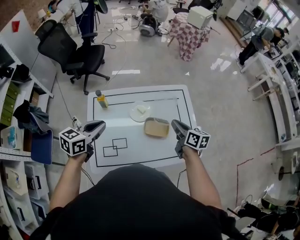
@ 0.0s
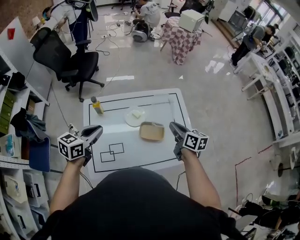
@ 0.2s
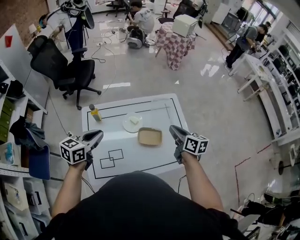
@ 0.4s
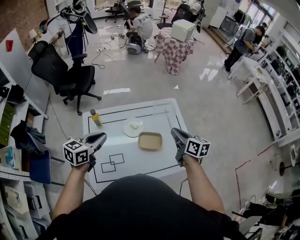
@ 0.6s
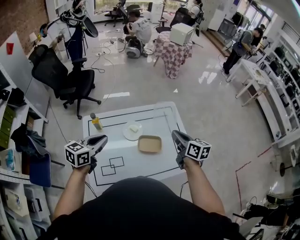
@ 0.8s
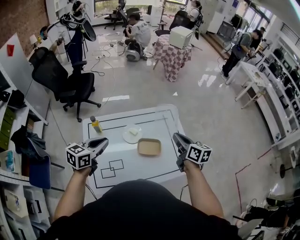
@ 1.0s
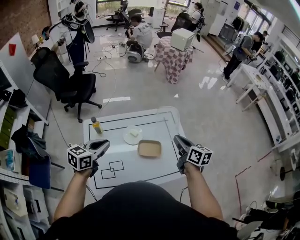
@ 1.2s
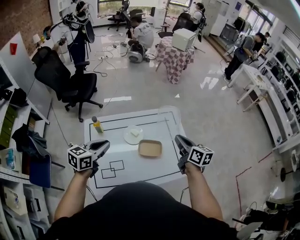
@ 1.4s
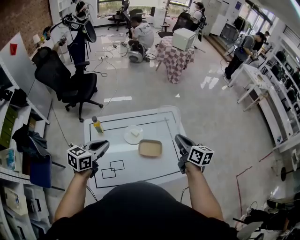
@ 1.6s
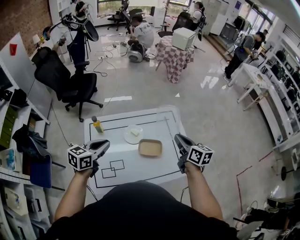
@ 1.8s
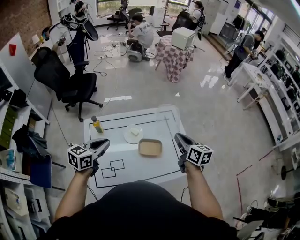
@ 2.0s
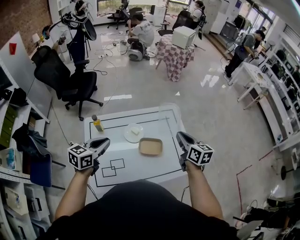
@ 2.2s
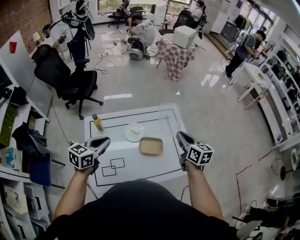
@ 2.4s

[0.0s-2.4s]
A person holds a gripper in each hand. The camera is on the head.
0.0s to 1.2s: The left gripper shifts by some 5 cm; the right gripper shifts approximately 10 cm upward.
1.2s to 2.4s: The grippers move only a little.

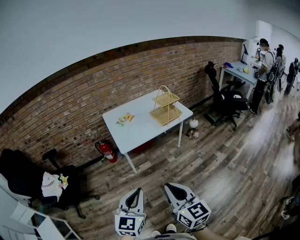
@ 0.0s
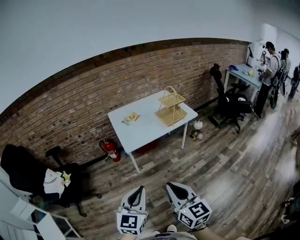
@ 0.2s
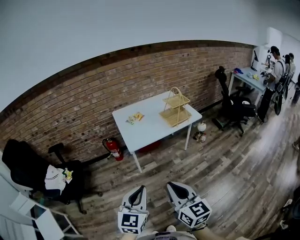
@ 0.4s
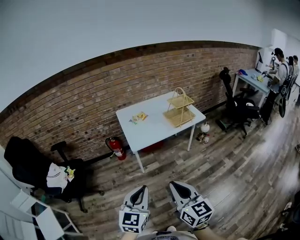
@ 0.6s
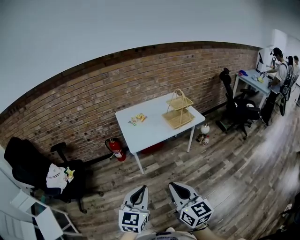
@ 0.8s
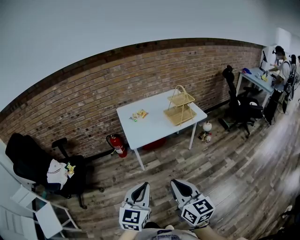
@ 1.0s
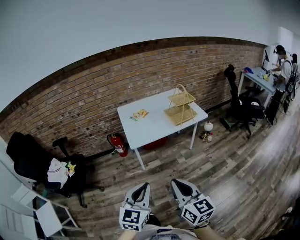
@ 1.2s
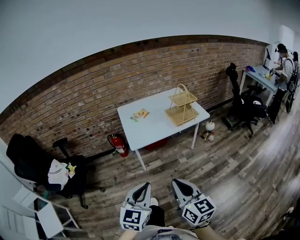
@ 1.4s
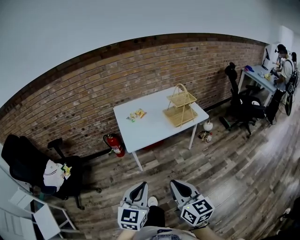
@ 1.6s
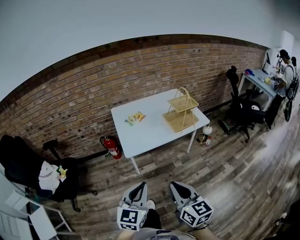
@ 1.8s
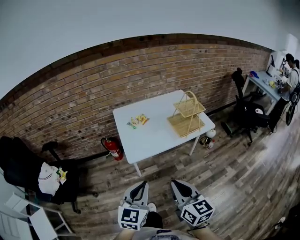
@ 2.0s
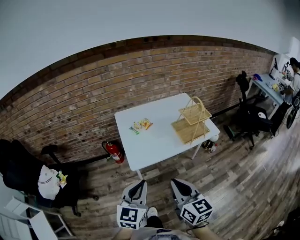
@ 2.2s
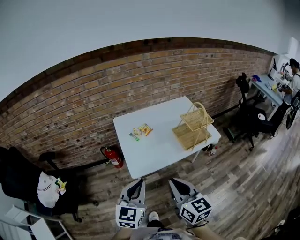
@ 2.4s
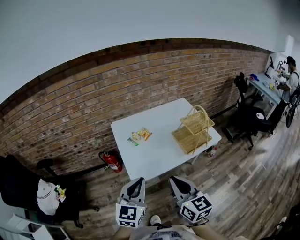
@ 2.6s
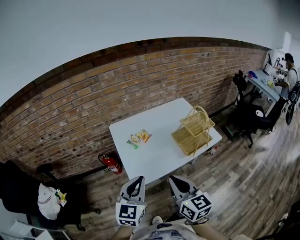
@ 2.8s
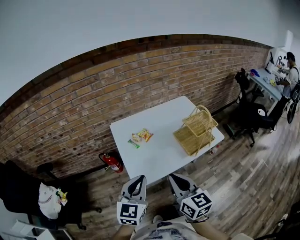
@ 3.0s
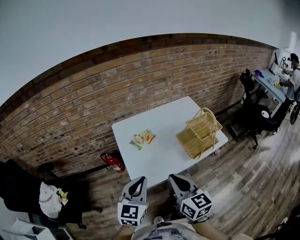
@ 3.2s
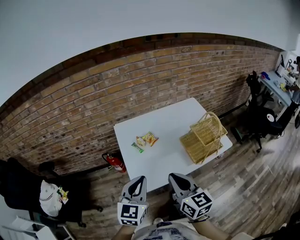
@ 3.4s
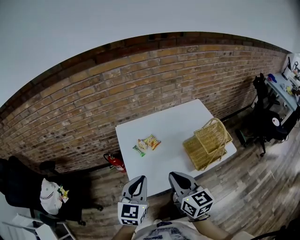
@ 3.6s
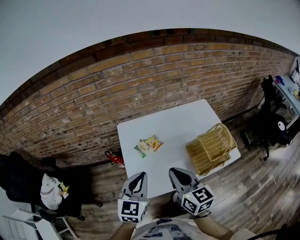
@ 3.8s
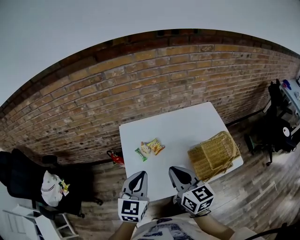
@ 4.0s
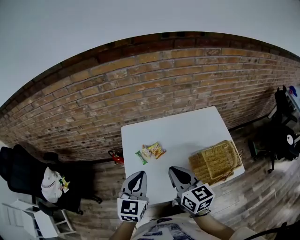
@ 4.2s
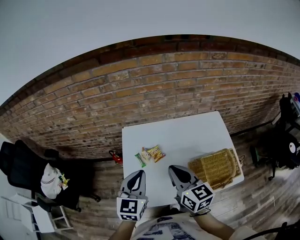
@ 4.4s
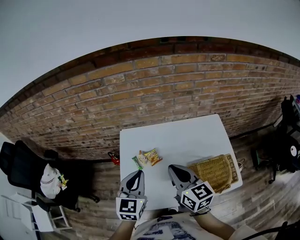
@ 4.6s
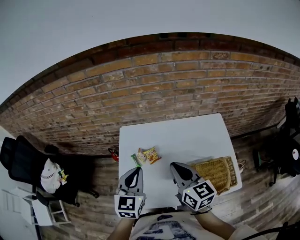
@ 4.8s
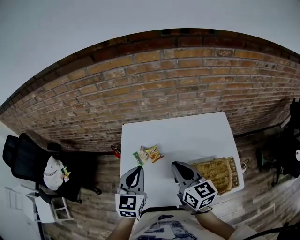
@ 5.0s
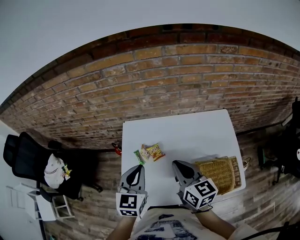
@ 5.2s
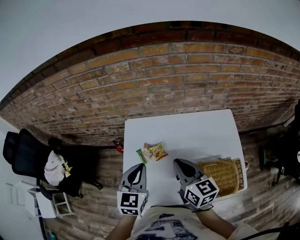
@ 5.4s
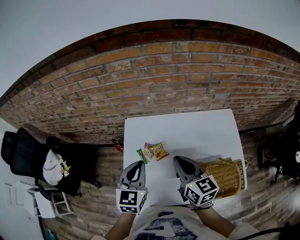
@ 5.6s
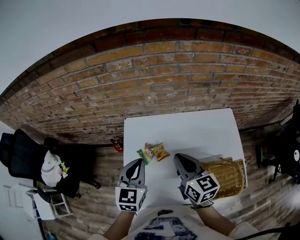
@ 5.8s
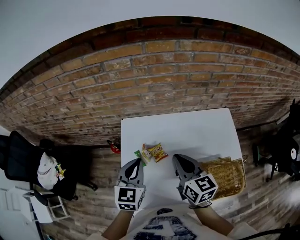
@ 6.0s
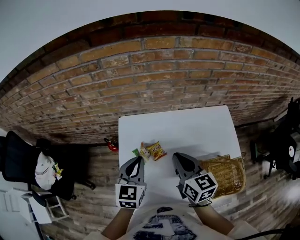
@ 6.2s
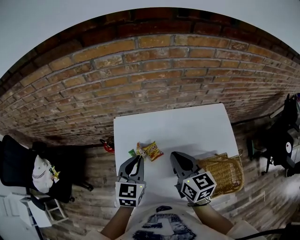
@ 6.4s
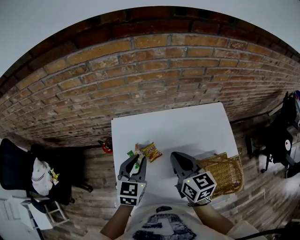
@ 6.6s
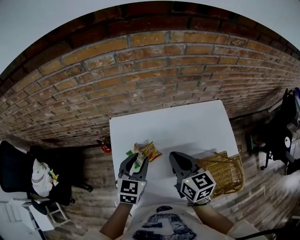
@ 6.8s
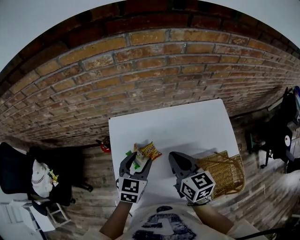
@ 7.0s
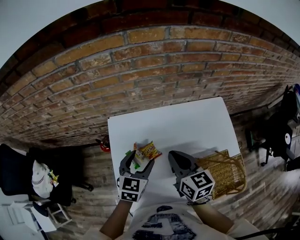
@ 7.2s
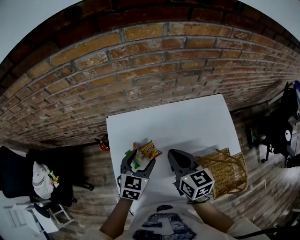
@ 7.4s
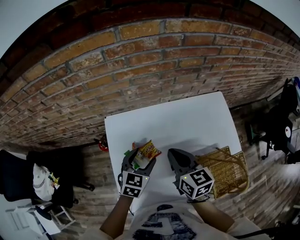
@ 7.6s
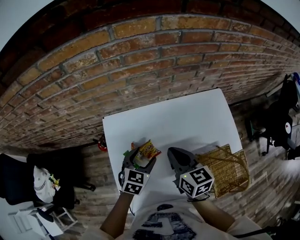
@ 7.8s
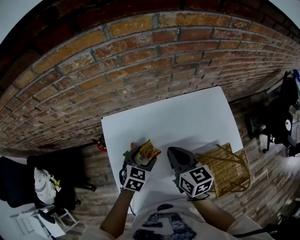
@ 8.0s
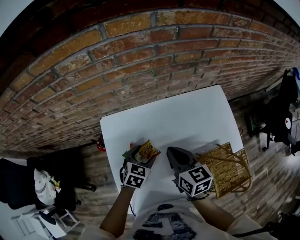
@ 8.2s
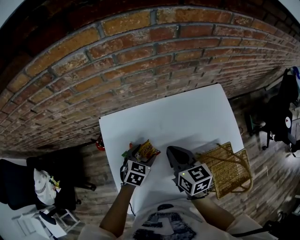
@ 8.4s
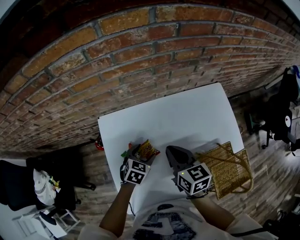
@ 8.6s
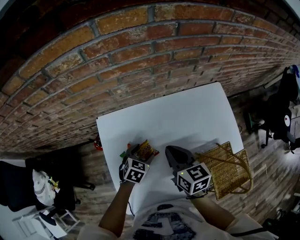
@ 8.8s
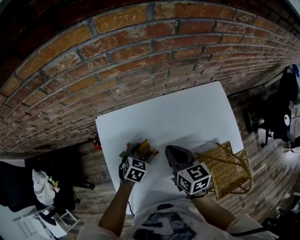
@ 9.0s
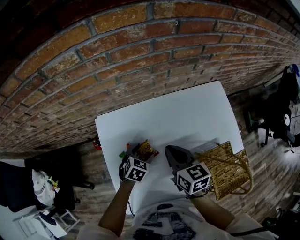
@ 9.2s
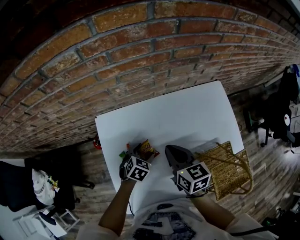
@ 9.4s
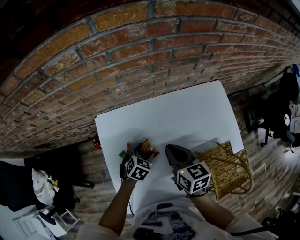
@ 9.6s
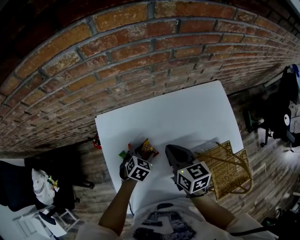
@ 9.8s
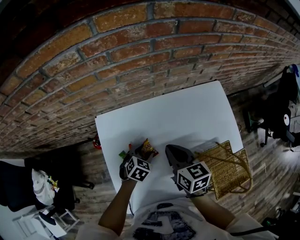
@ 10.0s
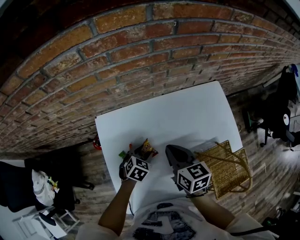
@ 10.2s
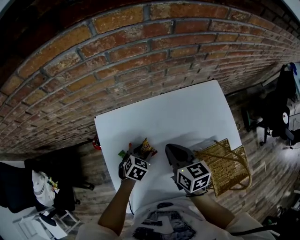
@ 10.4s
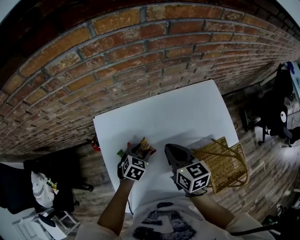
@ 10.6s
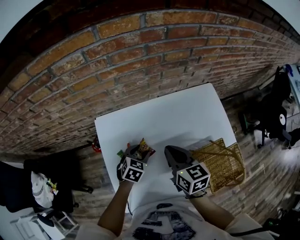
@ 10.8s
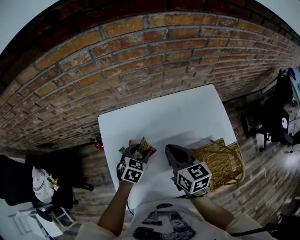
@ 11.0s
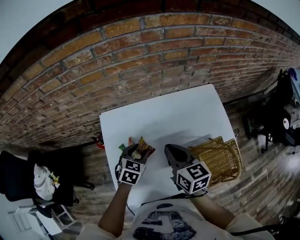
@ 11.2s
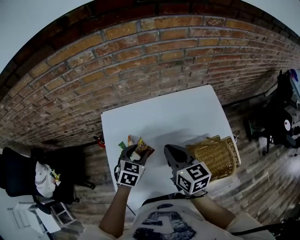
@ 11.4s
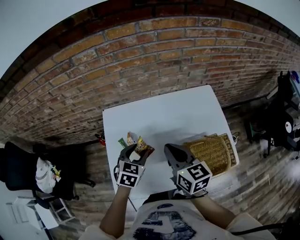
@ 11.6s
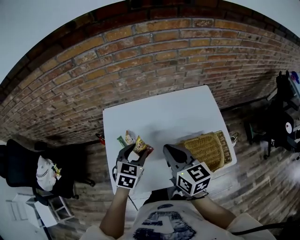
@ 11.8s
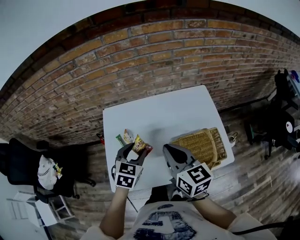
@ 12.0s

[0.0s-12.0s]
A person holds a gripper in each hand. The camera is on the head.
0.0s to 1.6s: The grippers both shift forward by some 10 cm.
1.6s to 3.0s: Both grippers move forward, approximately 35 cm.
3.0s to 4.4s: The grippers both shift forward by some 25 cm. The right gripper turns by about 20 degrees. The left gripper changes its angle by about 20 degrees.
4.4s to 6.0s: The two grippers go some 10 cm forward.
6.0s to 7.6s: The left gripper shifts about 15 cm downward, forward and to the right, rotates some 30 degrees, and opens up; the right gripper goes roughly 5 cm downward.
7.6s to 9.0s: The left gripper travels downward by some 10 cm. The right gripper goes about 5 cm downward.
9.0s to 10.4s: The grippers move only a little.
10.4s to 12.0s: The left gripper goes approximately 25 cm upward and backward, and rotates roughly 20 degrees. The right gripper goes roughly 20 cm backward, upward and to the right.

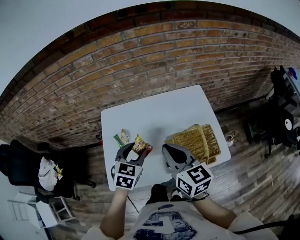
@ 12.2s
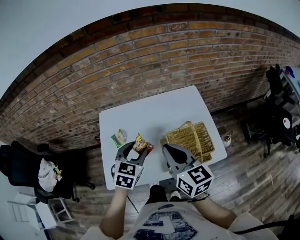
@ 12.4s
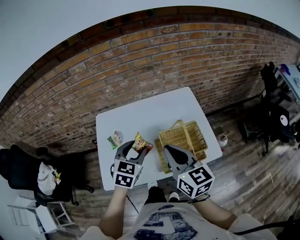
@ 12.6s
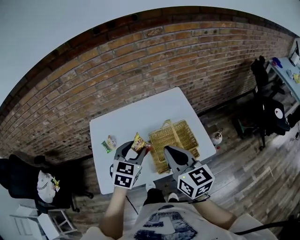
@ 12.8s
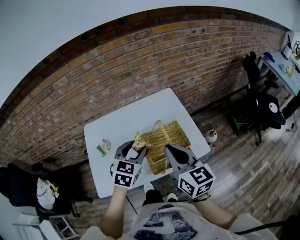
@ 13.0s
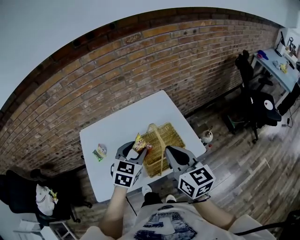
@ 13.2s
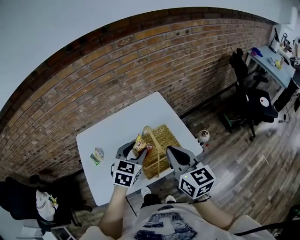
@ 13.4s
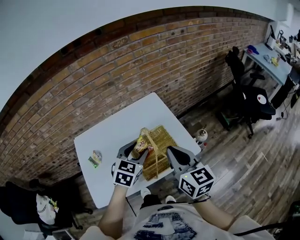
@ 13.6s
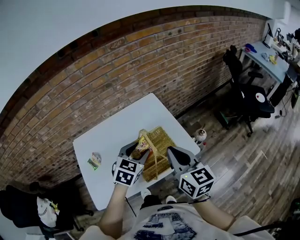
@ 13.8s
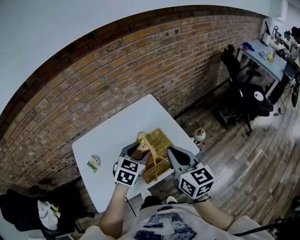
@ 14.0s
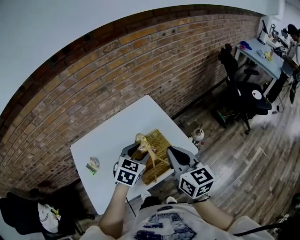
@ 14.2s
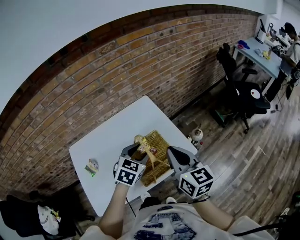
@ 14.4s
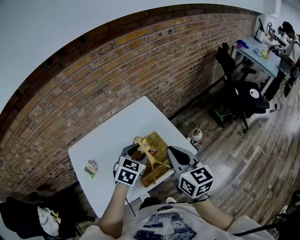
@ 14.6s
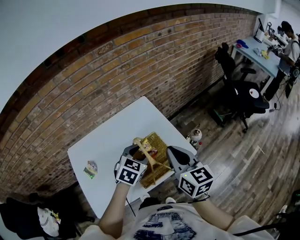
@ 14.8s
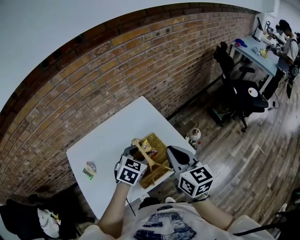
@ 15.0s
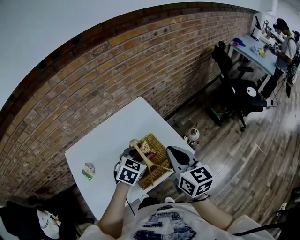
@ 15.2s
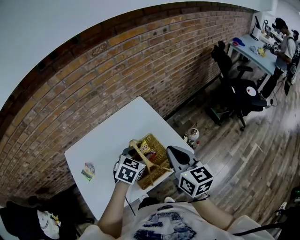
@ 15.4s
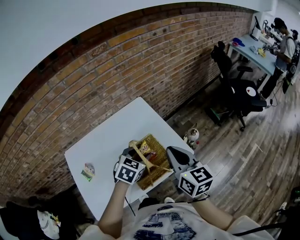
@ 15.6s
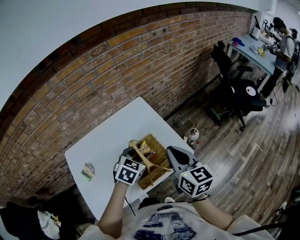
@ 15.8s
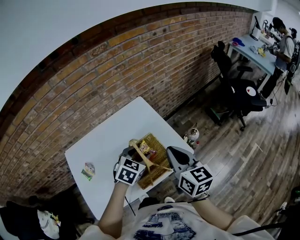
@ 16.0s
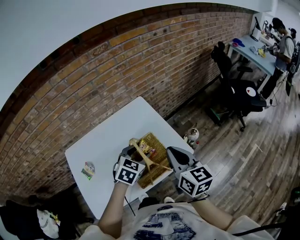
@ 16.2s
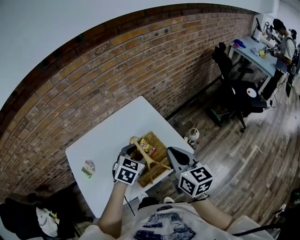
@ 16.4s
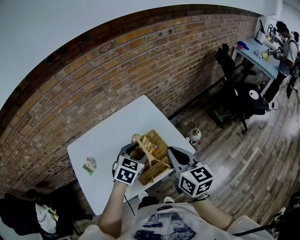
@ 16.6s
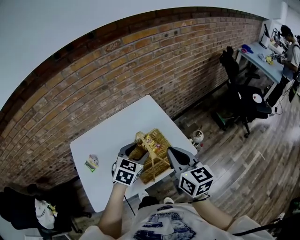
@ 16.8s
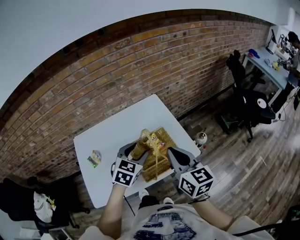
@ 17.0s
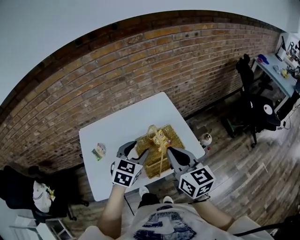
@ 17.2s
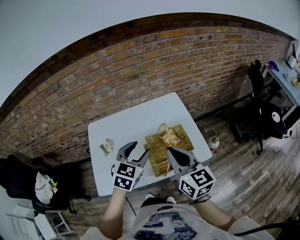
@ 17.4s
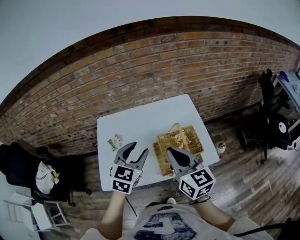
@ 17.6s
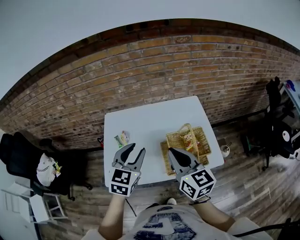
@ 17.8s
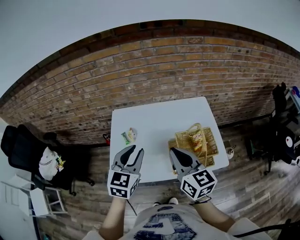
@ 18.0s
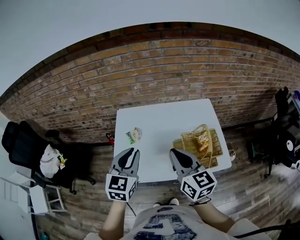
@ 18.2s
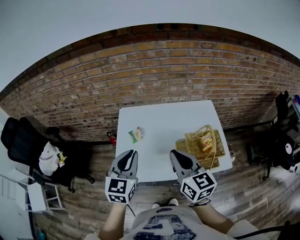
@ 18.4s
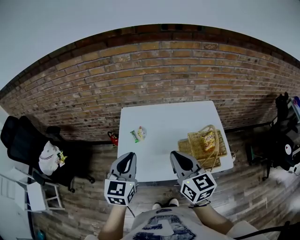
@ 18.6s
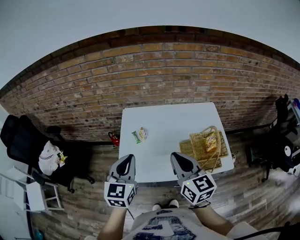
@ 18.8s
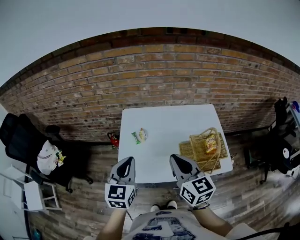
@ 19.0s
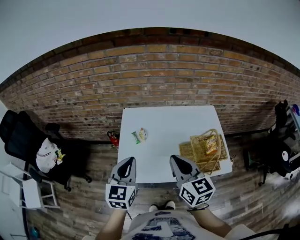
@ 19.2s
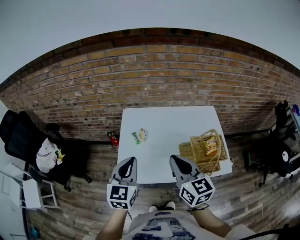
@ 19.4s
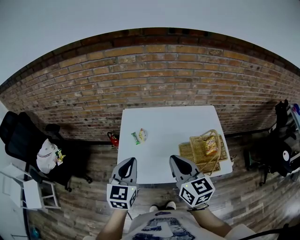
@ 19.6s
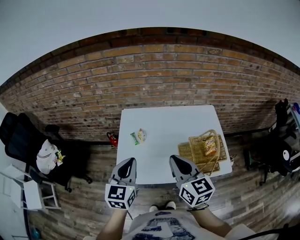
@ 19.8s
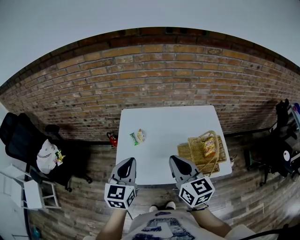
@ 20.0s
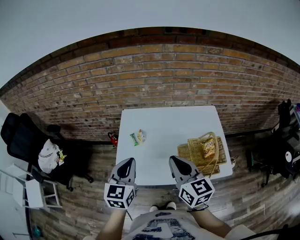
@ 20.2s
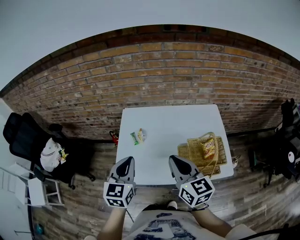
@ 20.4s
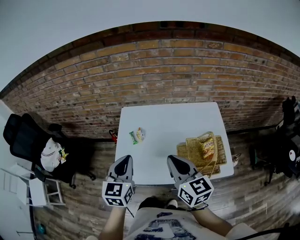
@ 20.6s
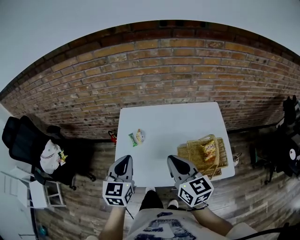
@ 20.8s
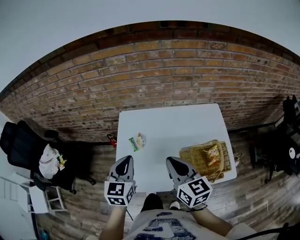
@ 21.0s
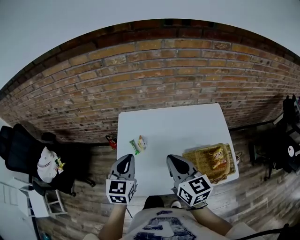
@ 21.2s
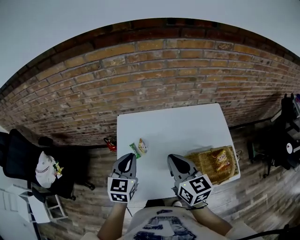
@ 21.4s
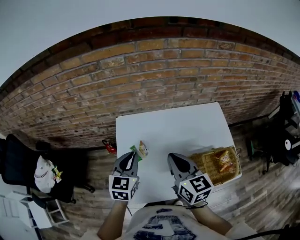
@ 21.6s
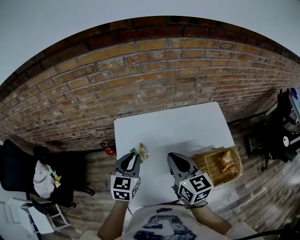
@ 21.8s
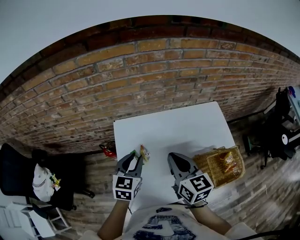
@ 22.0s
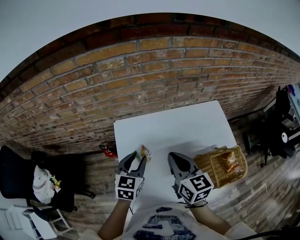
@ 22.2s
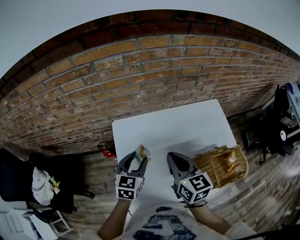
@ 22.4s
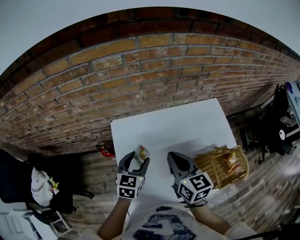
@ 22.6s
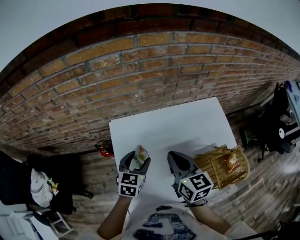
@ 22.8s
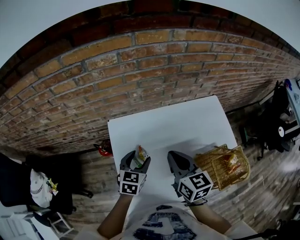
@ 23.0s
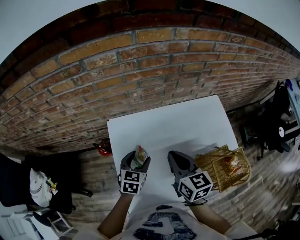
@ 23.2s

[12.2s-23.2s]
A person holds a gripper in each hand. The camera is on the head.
12.2s to 13.8s: Both grippers travel together to the right, roughly 20 cm. The right gripper turns by about 20 degrees. Meanwhile the left gripper swivels some 20 degrees.
13.8s to 15.4s: The left gripper ends up roughly 5 cm from where it was. The right gripper shifts by about 5 cm.
15.4s to 17.0s: The left gripper moves some 10 cm; the right gripper shifts by roughly 5 cm.
17.0s to 18.4s: The right gripper shifts by roughly 25 cm, and changes its angle by roughly 30 degrees; the left gripper moves some 30 cm, rotates approximately 40 degrees, and closes up.
18.4s to 20.0s: The grippers stay close to where they were, moving slightly.
20.0s to 21.6s: The grippers both shift forward by about 15 cm.
21.6s to 23.2s: The left gripper heads downward and forward, covering about 15 cm, and opens up. Meanwhile the right gripper travels forward and downward by about 10 cm.
